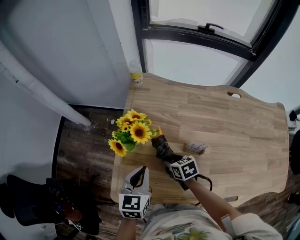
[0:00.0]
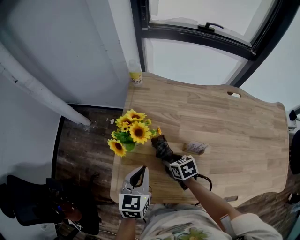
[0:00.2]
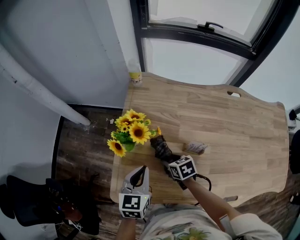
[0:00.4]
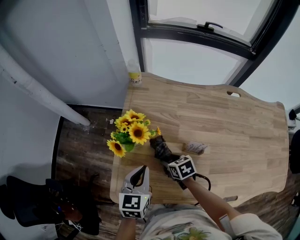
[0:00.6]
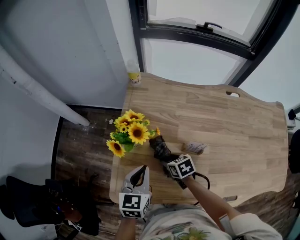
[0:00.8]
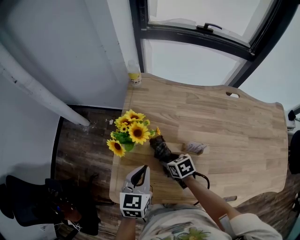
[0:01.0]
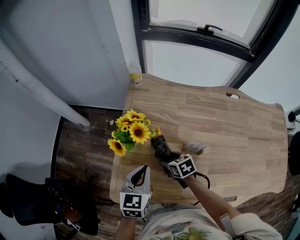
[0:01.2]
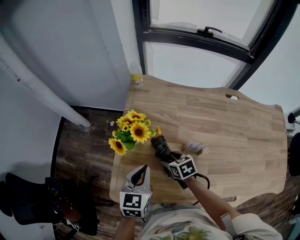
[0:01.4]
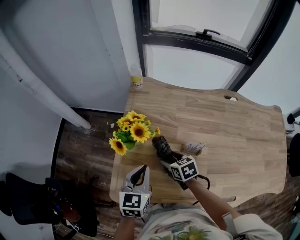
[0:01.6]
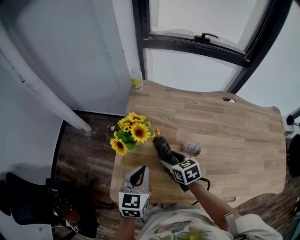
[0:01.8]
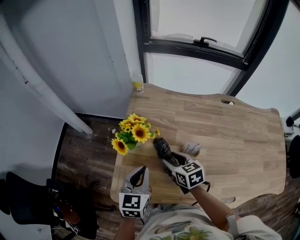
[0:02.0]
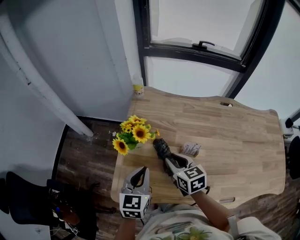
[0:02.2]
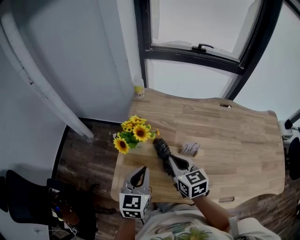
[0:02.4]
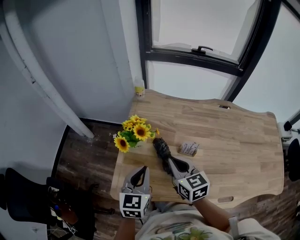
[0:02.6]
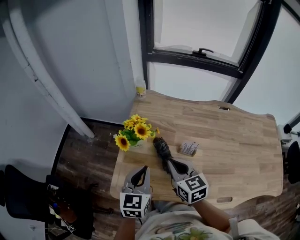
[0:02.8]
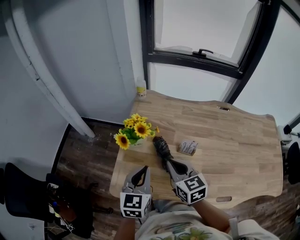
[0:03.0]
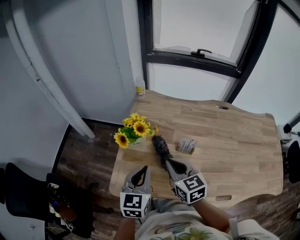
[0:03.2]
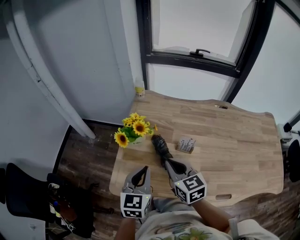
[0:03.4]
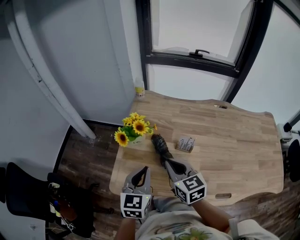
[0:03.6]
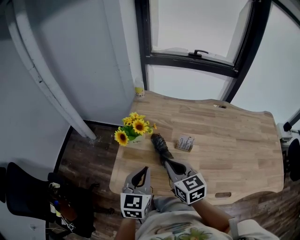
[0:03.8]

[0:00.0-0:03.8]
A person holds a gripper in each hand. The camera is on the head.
0:00.0 to 0:01.2: The grippers stay close to where they were, moving slightly.
0:01.2 to 0:02.6: The left gripper travels upward by roughly 5 cm. Meanwhile the right gripper heads upward, covering about 20 cm, rotates roughly 40 degrees, and closes its fingers.
0:02.6 to 0:03.8: The two grippers go approximately 5 cm backward.

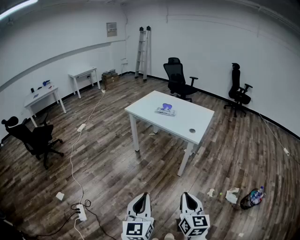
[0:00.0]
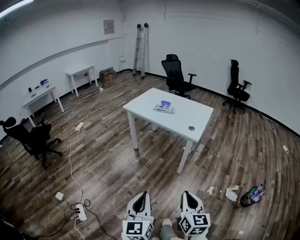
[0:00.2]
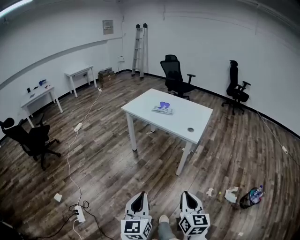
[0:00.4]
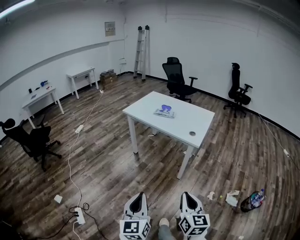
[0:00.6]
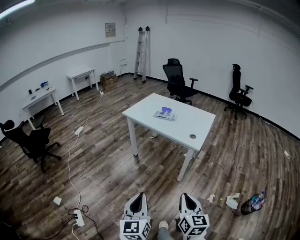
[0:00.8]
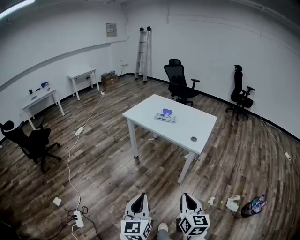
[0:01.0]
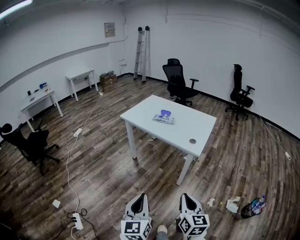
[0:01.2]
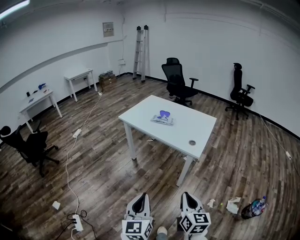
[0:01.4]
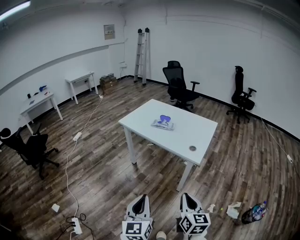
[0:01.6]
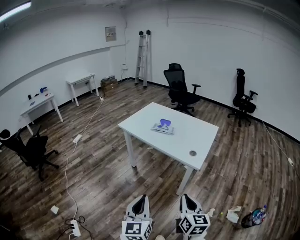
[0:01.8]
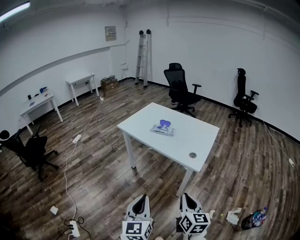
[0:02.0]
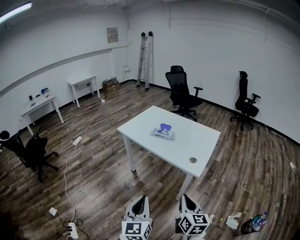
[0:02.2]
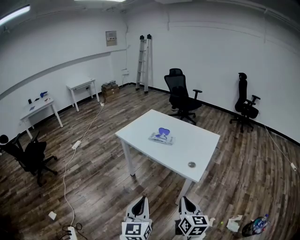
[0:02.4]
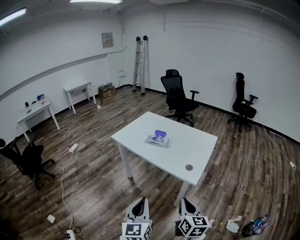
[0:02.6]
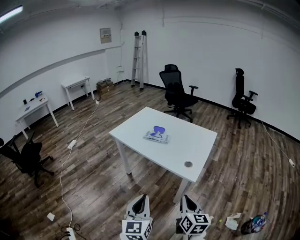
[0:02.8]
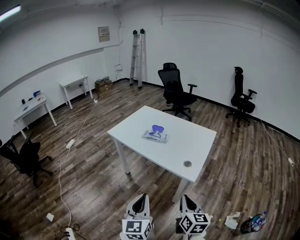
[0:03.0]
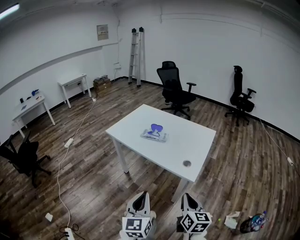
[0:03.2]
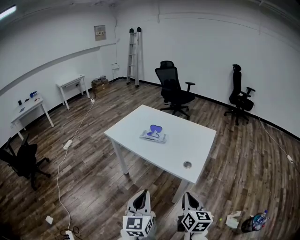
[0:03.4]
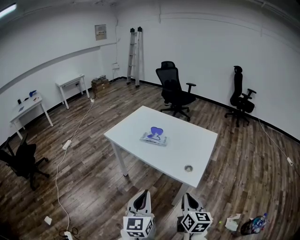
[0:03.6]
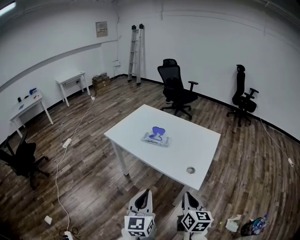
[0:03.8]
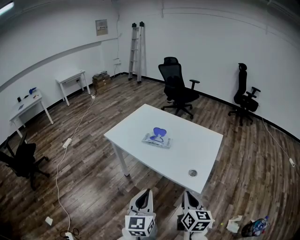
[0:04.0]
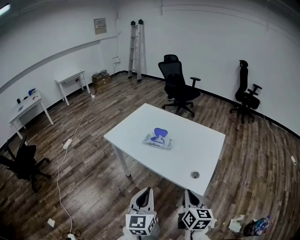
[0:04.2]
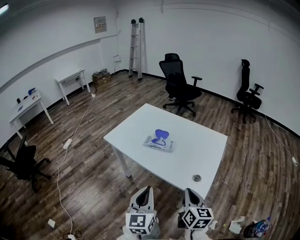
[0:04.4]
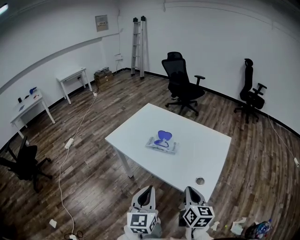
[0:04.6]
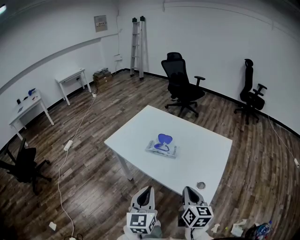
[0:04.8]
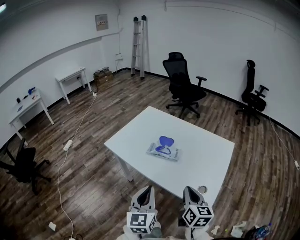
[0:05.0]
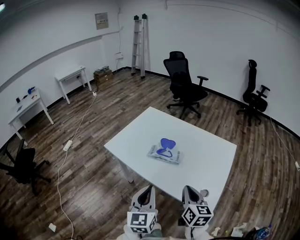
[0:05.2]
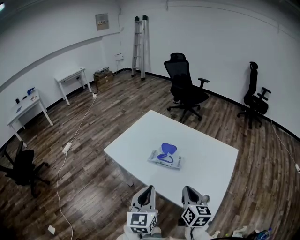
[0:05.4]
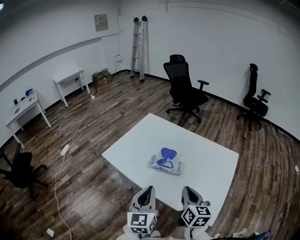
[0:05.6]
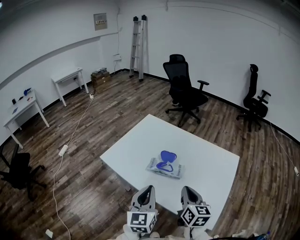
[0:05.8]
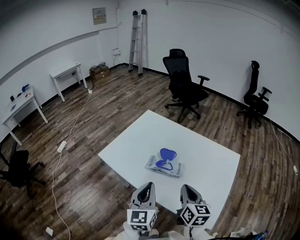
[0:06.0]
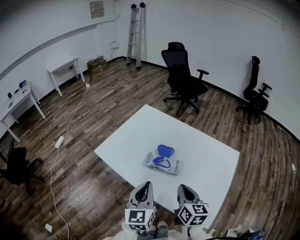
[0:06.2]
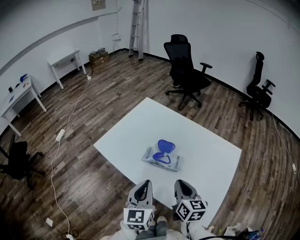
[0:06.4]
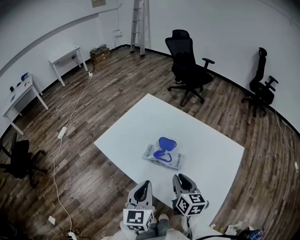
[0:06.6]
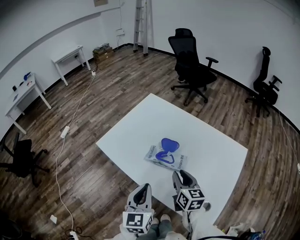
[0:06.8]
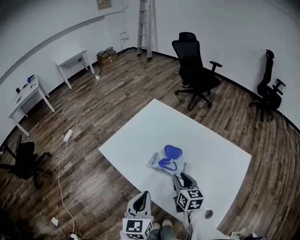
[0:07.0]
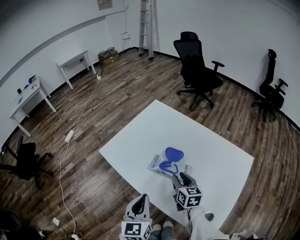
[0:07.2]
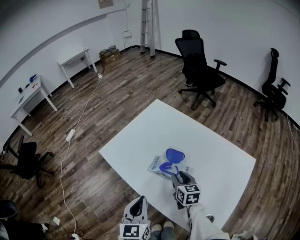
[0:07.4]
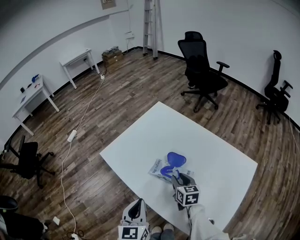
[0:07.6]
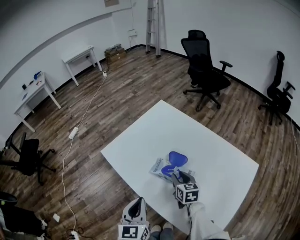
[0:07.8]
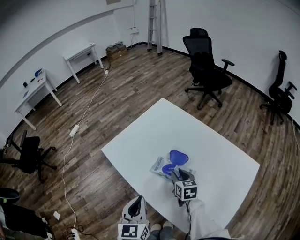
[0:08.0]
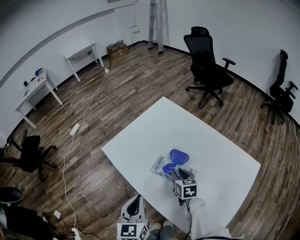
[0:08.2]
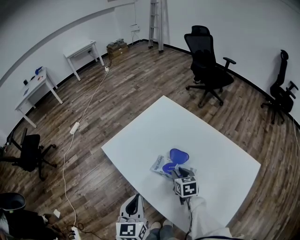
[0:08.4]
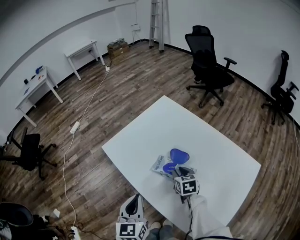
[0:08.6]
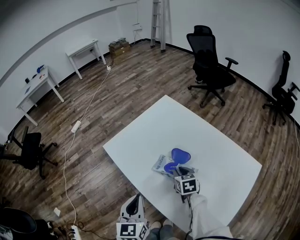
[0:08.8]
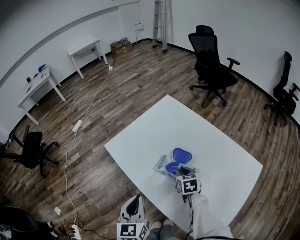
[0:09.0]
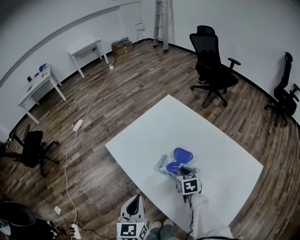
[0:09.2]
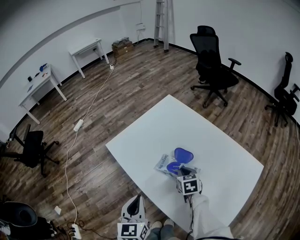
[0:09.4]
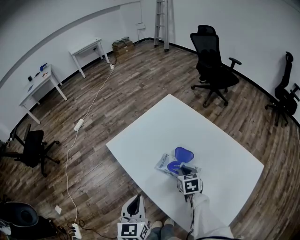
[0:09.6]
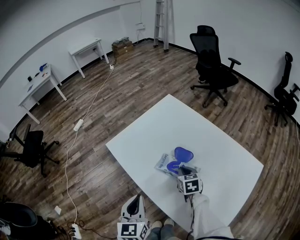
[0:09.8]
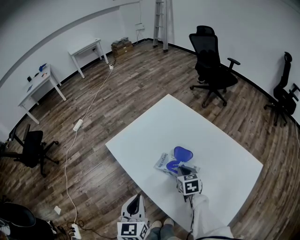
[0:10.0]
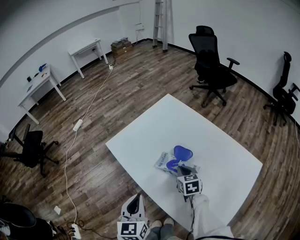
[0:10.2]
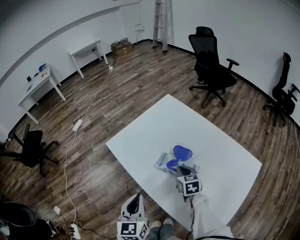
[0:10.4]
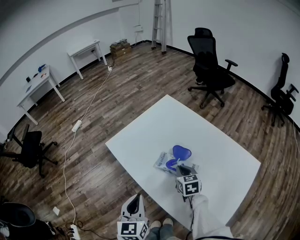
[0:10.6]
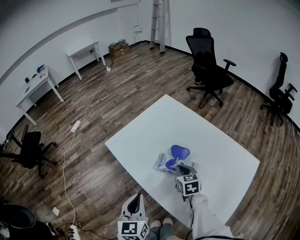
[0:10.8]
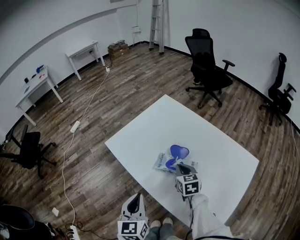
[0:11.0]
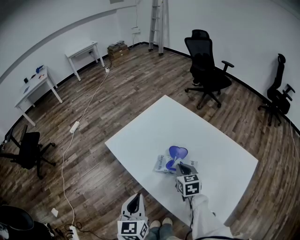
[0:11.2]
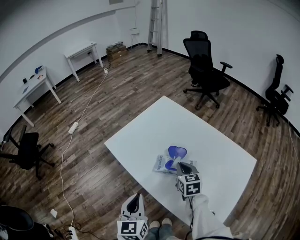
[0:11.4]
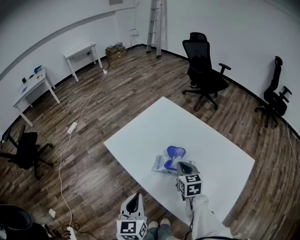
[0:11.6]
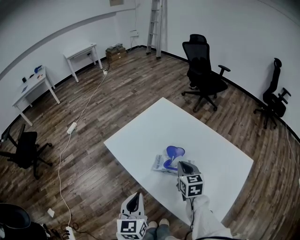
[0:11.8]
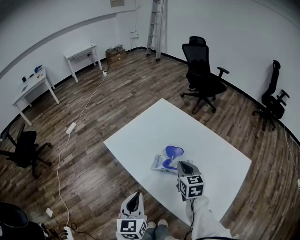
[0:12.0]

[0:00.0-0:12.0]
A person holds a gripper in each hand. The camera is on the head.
0:00.0 to 0:01.6: The two grippers go approximately 20 cm forward.
0:01.6 to 0:03.0: Both grippers travel together forward and to the right, some 15 cm.
0:03.0 to 0:04.4: The grippers both shift forward by approximately 20 cm.
0:04.4 to 0:06.0: Both grippers travel together forward, some 20 cm.
0:06.0 to 0:07.6: The left gripper shifts approximately 5 cm downward, while the right gripper heads forward and downward, covering roughly 20 cm, changes its angle by approximately 20 degrees, and opens.
0:07.6 to 0:10.4: The grippers make only small movements.
0:10.4 to 0:12.0: The right gripper moves upward, approximately 10 cm.

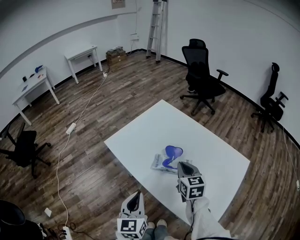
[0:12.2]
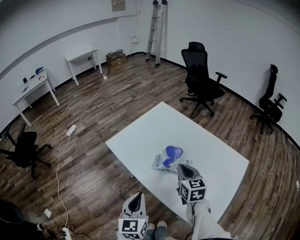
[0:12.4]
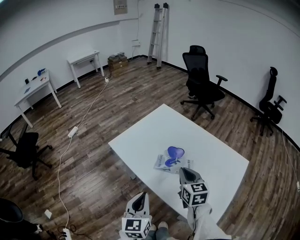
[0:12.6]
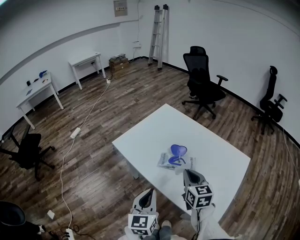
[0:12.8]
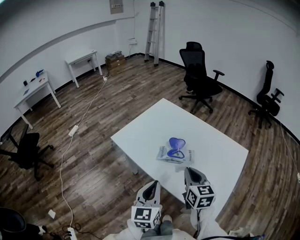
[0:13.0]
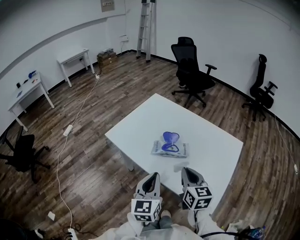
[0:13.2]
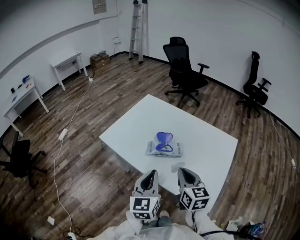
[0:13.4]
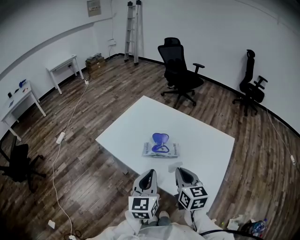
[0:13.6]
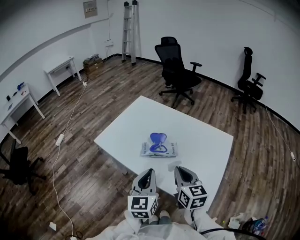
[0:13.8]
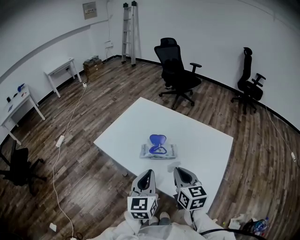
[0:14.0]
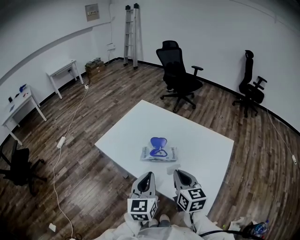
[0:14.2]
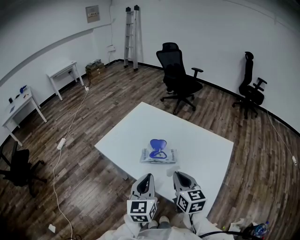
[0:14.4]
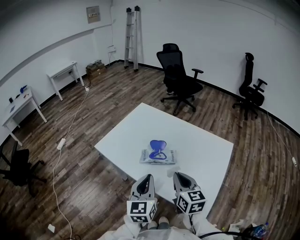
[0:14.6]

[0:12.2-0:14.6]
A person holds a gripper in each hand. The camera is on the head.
0:12.2 to 0:13.4: The right gripper is displaced backward by roughly 15 cm, while the left gripper shifts approximately 10 cm to the right and upward.
0:13.4 to 0:14.6: The grippers move only a little.

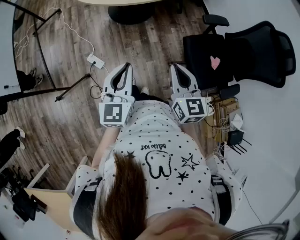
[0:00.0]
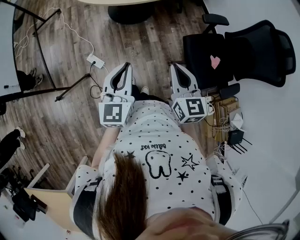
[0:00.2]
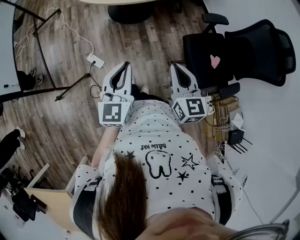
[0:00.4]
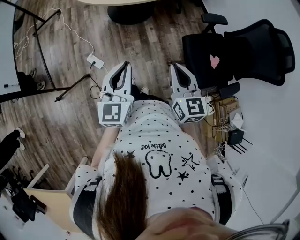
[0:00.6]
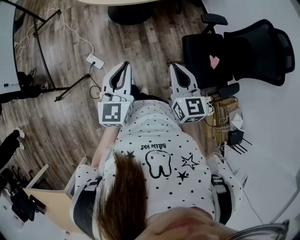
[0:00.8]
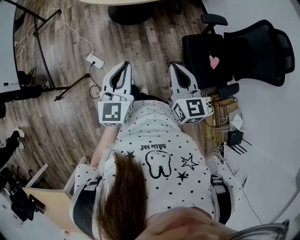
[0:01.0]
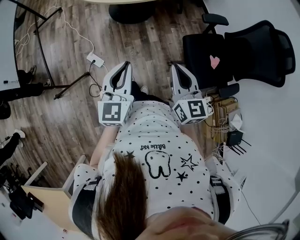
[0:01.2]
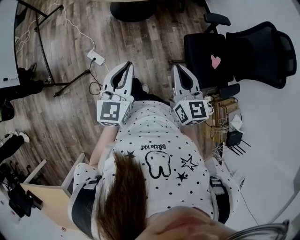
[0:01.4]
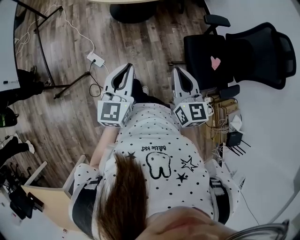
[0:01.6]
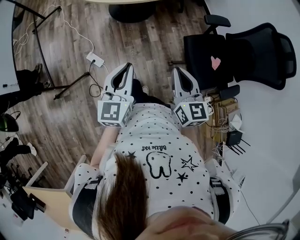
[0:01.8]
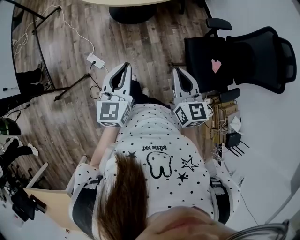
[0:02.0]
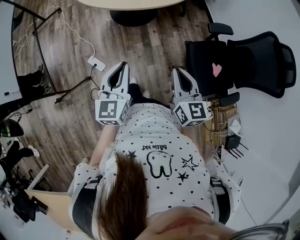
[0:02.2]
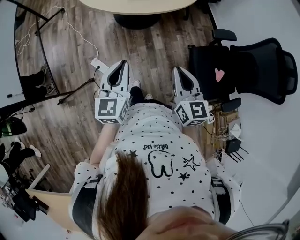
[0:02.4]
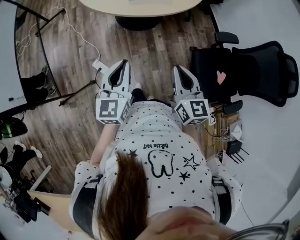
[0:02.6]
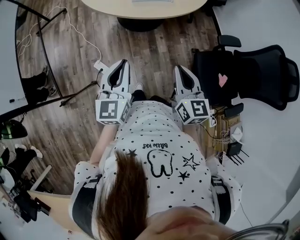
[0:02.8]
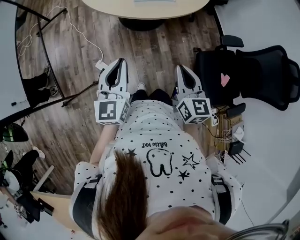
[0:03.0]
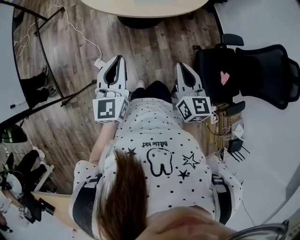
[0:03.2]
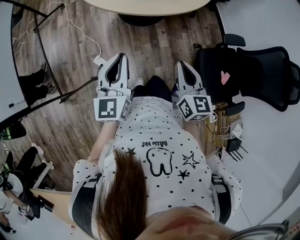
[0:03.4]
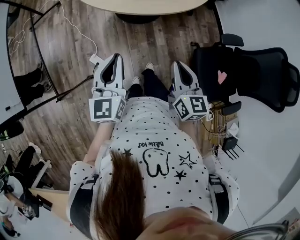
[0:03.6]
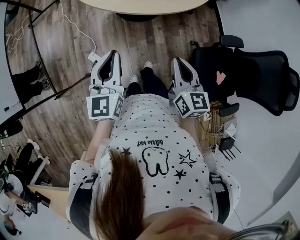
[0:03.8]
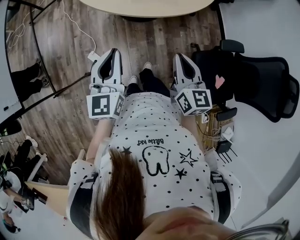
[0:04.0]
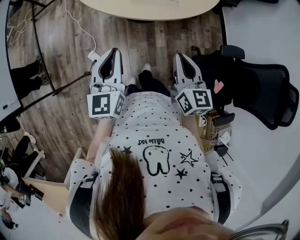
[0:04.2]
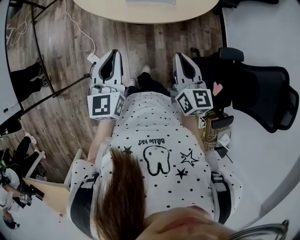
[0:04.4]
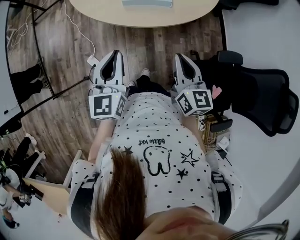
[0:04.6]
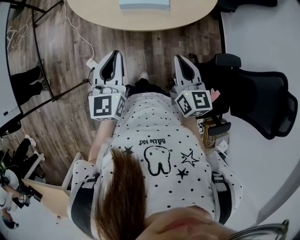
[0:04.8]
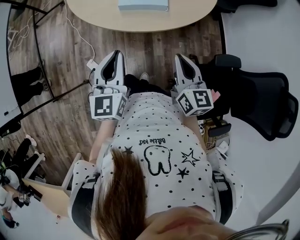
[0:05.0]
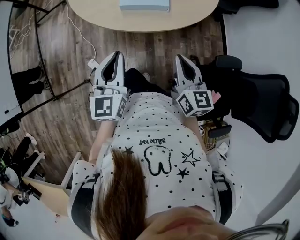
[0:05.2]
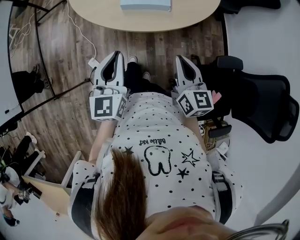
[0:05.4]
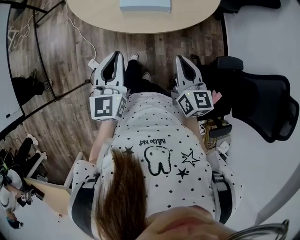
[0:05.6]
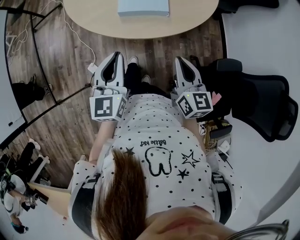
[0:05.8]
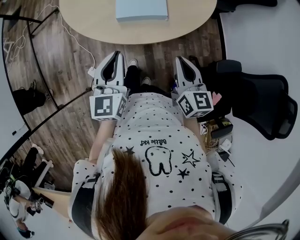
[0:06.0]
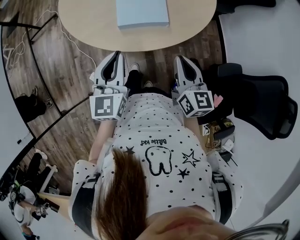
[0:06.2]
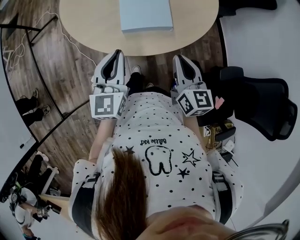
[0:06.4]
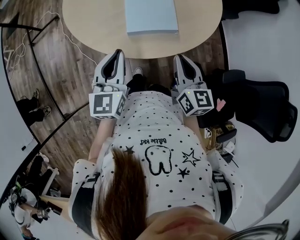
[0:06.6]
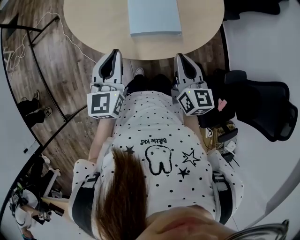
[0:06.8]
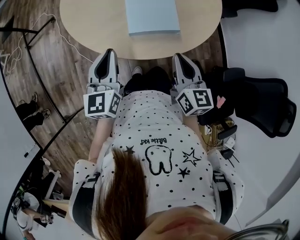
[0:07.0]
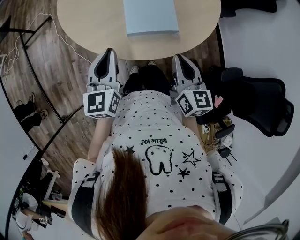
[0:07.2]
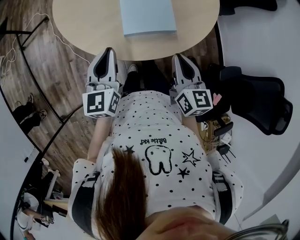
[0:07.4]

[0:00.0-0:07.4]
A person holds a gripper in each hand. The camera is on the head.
0:00.0 to 0:01.4: The grippers make only small movements.
0:01.4 to 0:03.0: The grippers both shift forward and to the left by some 20 cm.
0:03.0 to 0:04.4: Both grippers travel together forward, some 15 cm.
0:04.4 to 0:06.0: The two grippers go roughly 10 cm forward.
0:06.0 to 0:07.4: The two grippers go roughly 10 cm forward and to the left.
